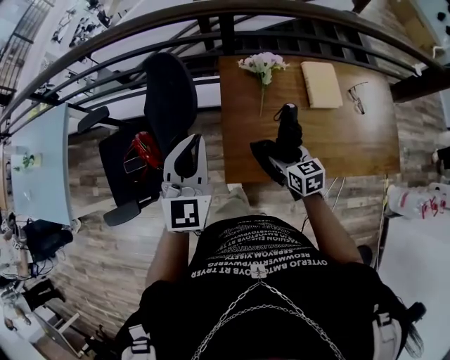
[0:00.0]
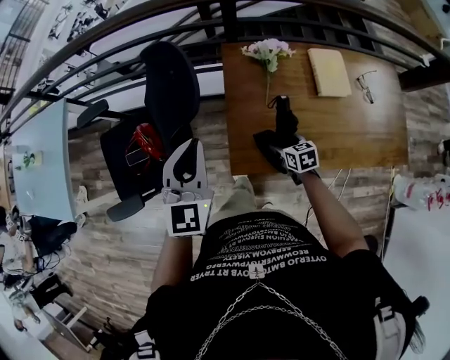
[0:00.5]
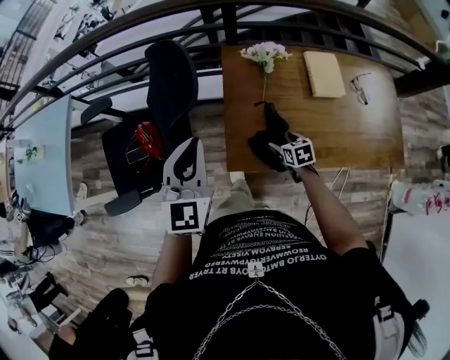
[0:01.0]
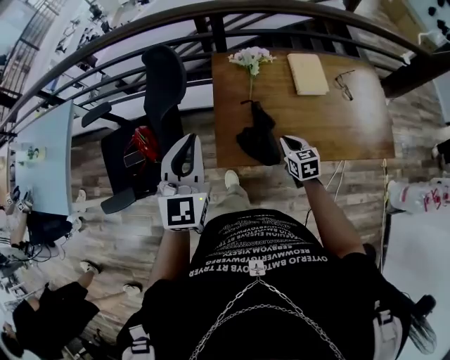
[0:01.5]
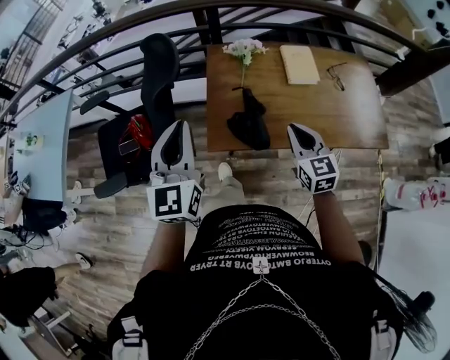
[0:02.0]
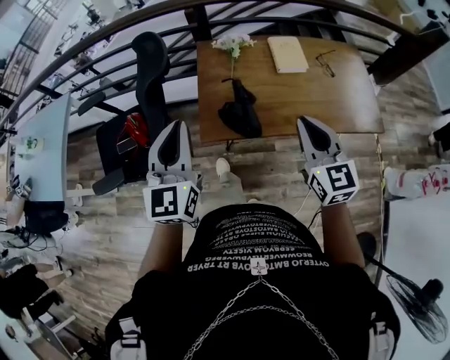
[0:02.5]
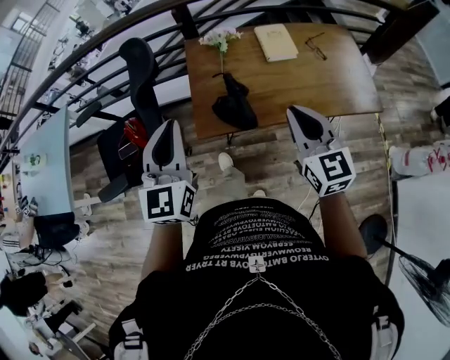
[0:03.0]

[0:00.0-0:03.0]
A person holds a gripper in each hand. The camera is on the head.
0:00.0 to 0:01.5: The right gripper heads to the right and backward, covering about 10 cm, goes downward and returns, some 10 cm each way, and closes up; the left gripper travels backward by roughly 10 cm.
0:01.5 to 0:03.0: The right gripper is displaced upward and backward by about 30 cm, and turns by roughly 30 degrees. The left gripper shifts roughly 15 cm backward and to the right.

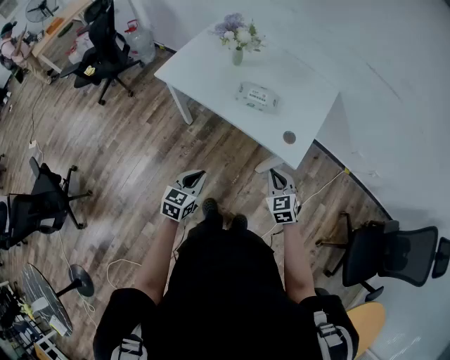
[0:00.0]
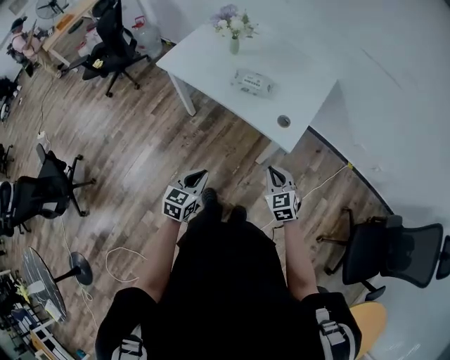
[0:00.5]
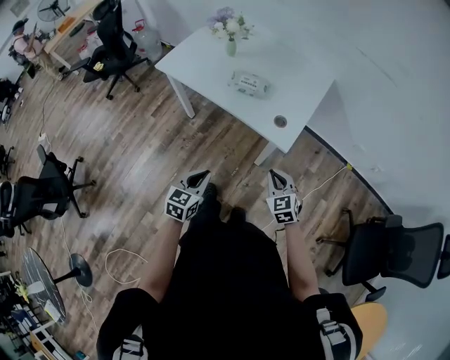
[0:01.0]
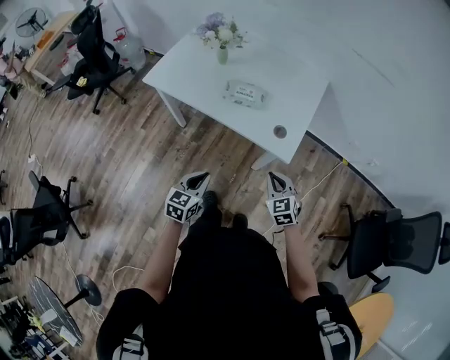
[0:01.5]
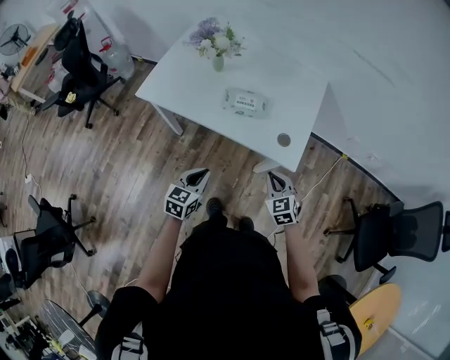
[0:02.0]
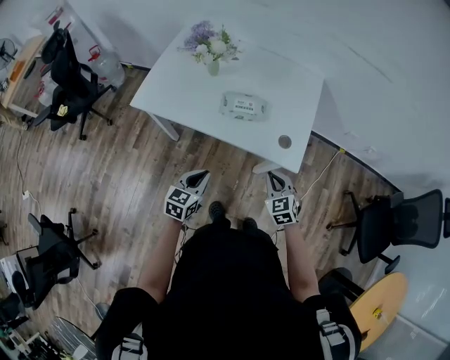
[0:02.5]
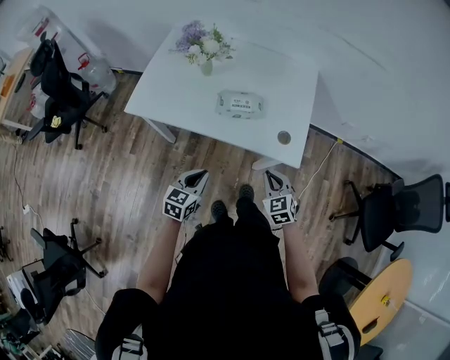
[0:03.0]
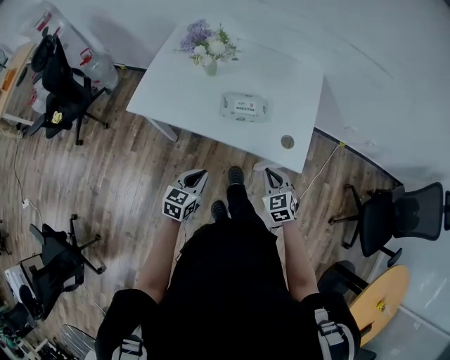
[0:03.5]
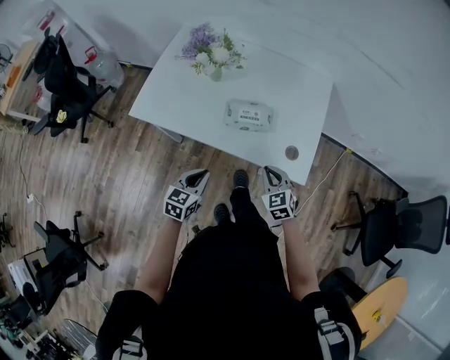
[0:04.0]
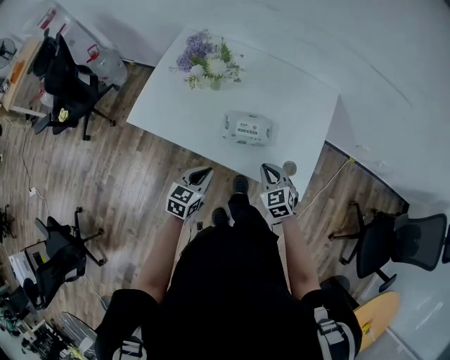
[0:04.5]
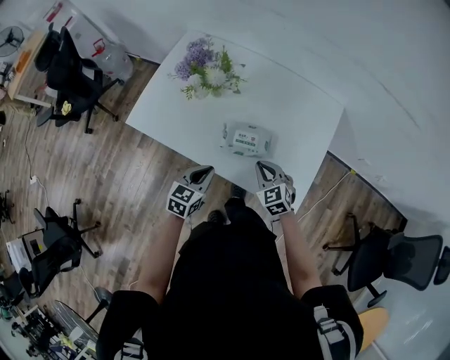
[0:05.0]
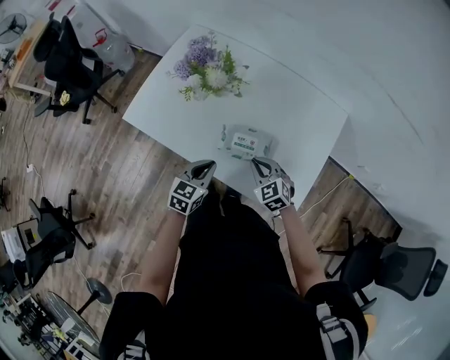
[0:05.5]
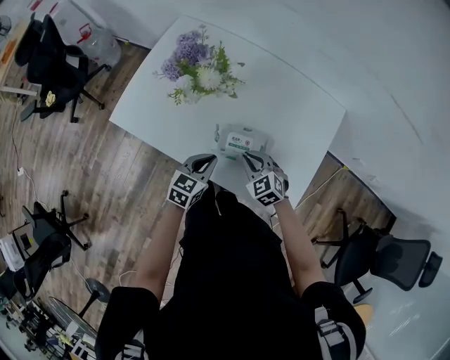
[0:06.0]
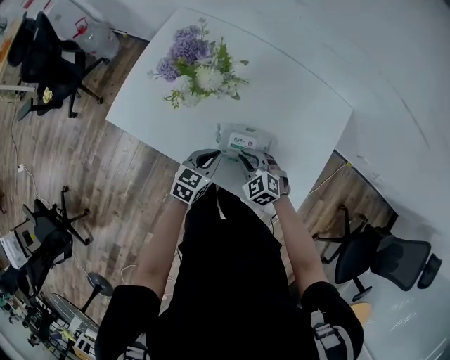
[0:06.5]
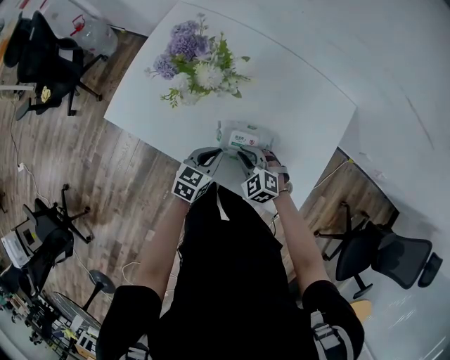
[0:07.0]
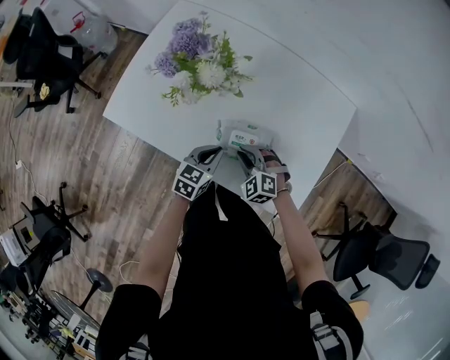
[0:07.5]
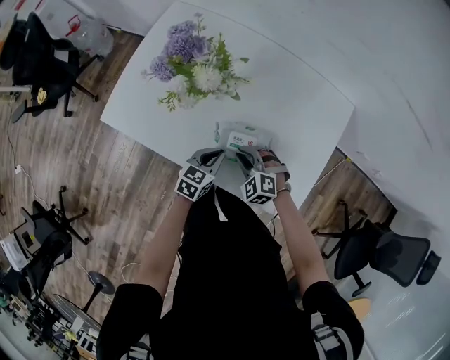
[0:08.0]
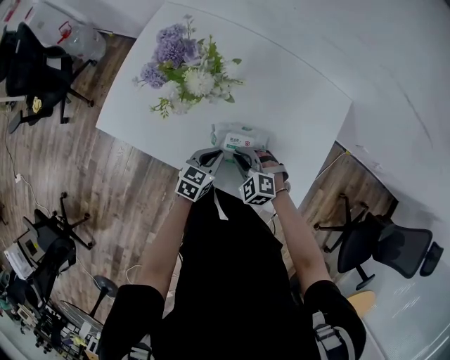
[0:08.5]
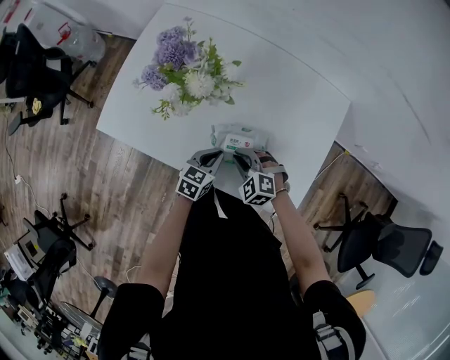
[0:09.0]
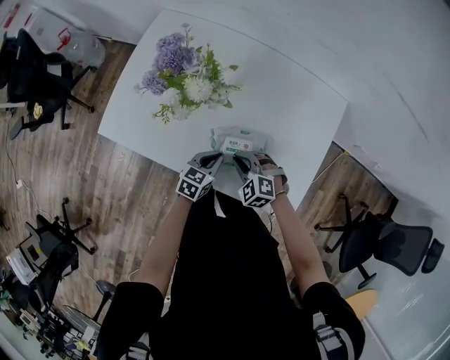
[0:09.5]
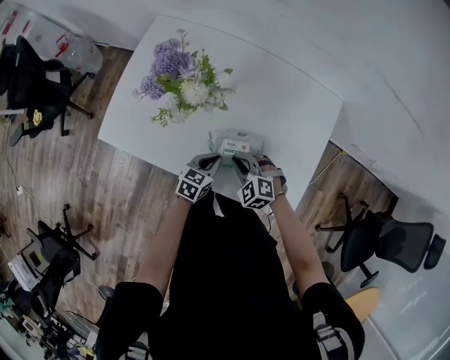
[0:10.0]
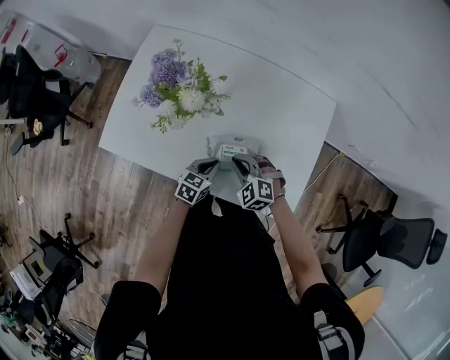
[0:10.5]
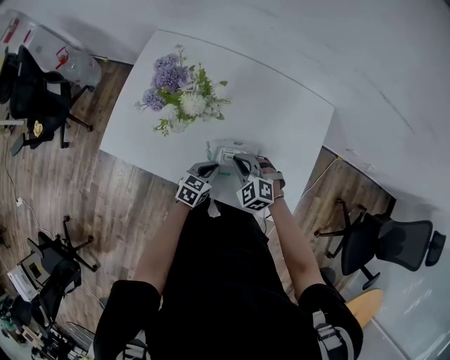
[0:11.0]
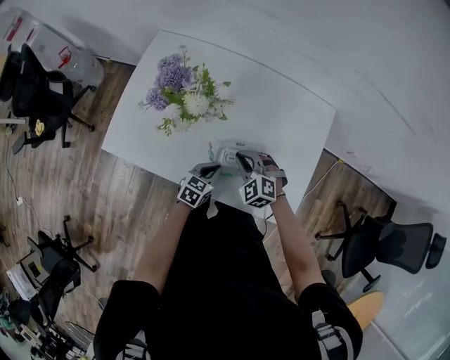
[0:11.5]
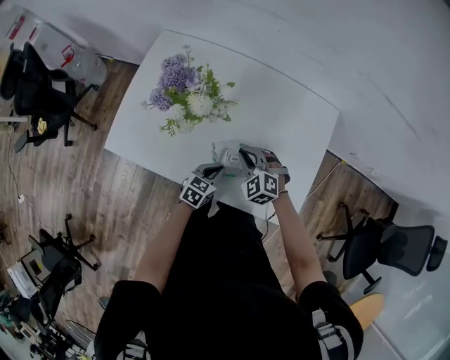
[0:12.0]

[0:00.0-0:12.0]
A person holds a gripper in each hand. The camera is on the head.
0:00.0 to 0:02.0: The left gripper heads forward, covering approximately 10 cm.
0:02.0 to 0:04.0: Both grippers travel together forward and to the left, about 15 cm.
0:04.0 to 0:06.0: Both grippers travel together forward, approximately 20 cm. The right gripper changes its angle by roughly 20 degrees.
0:06.0 to 0:08.0: The two grippers go some 5 cm downward. The right gripper turns by about 20 degrees.
0:08.0 to 0:10.0: The grippers move only a little.
0:10.0 to 0:12.0: The right gripper goes roughly 5 cm forward.

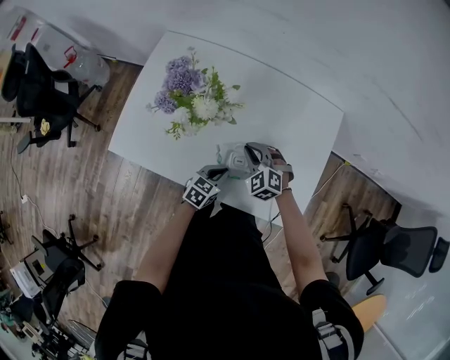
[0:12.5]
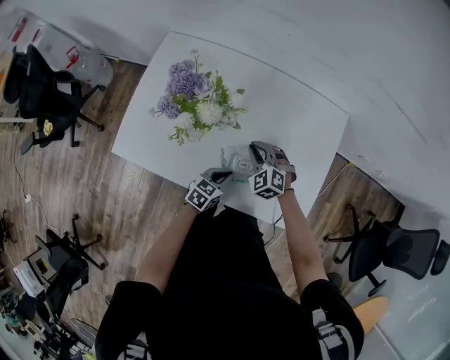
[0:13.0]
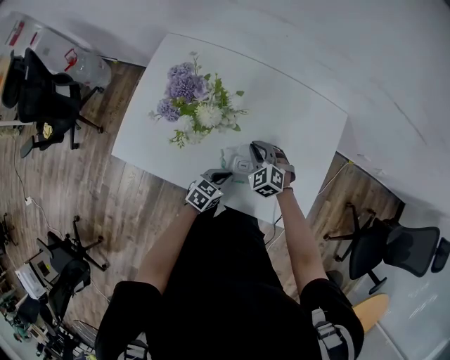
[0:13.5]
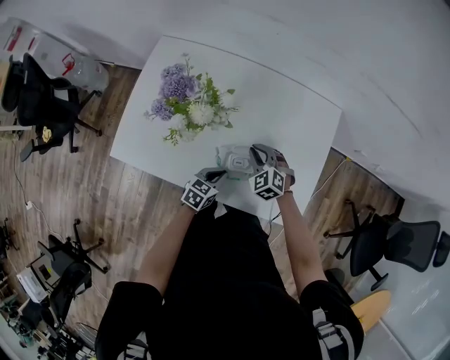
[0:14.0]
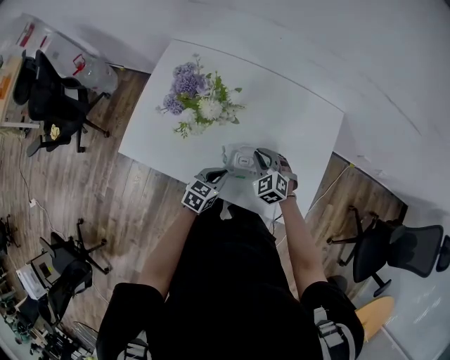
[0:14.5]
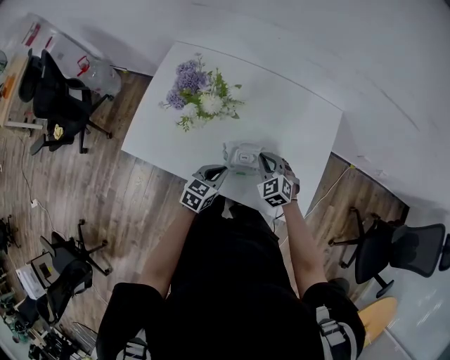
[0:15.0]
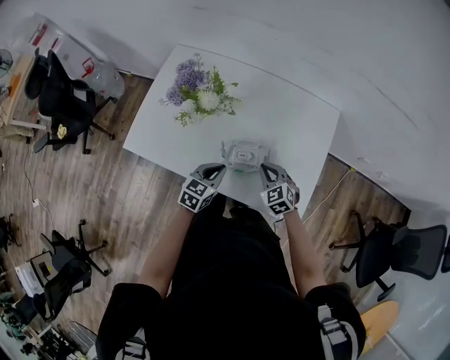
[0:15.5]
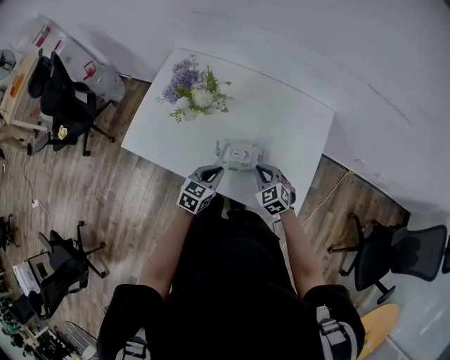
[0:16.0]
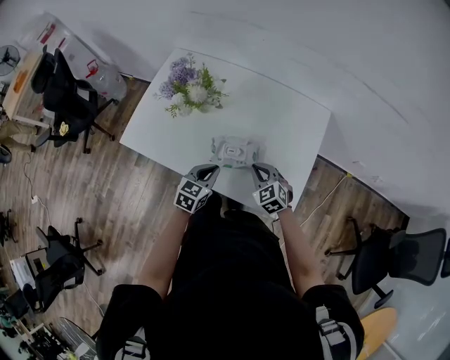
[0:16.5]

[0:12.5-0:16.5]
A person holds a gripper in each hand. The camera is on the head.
0:12.5 to 0:14.5: The left gripper heads upward, covering some 5 cm.
0:14.5 to 0:16.5: The right gripper travels backward and to the right by some 15 cm; the left gripper is displaced upward by roughly 5 cm.

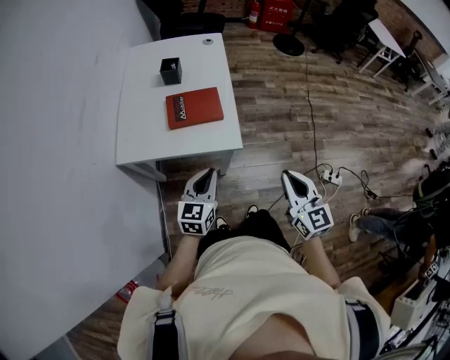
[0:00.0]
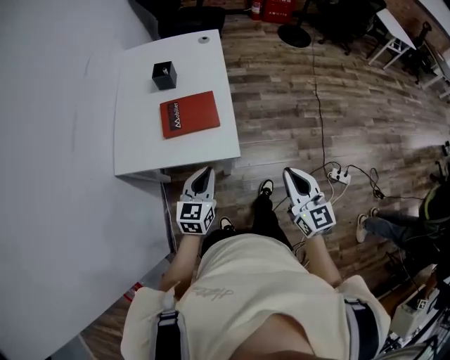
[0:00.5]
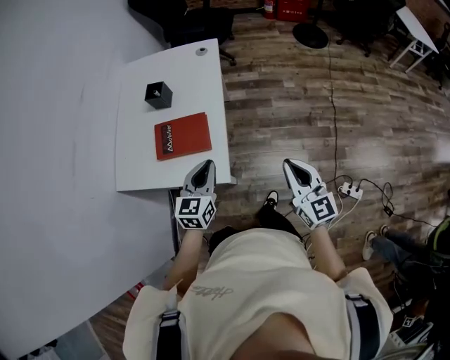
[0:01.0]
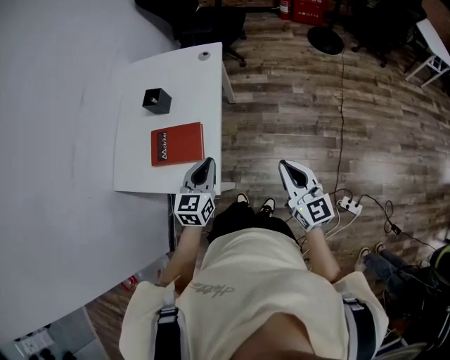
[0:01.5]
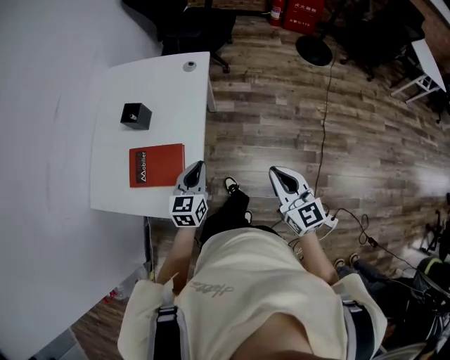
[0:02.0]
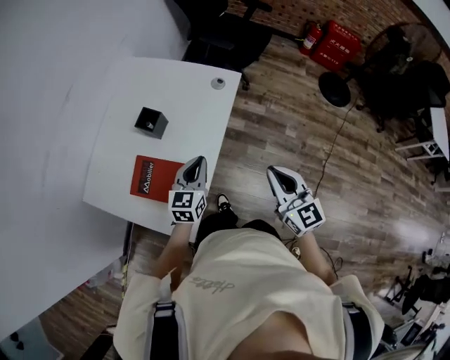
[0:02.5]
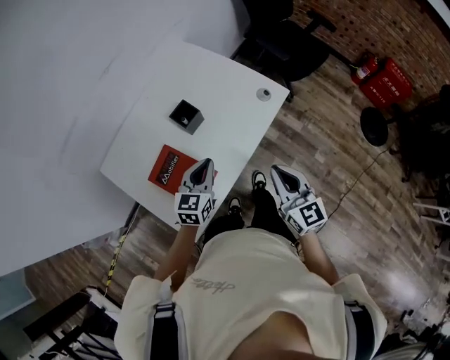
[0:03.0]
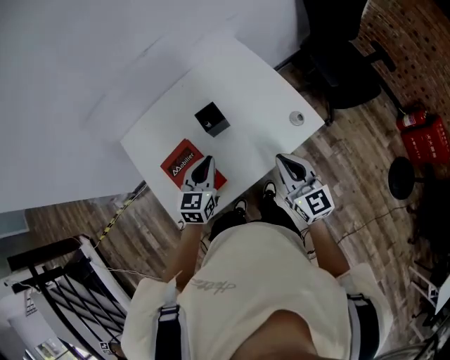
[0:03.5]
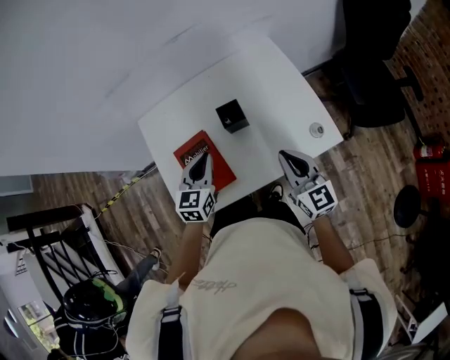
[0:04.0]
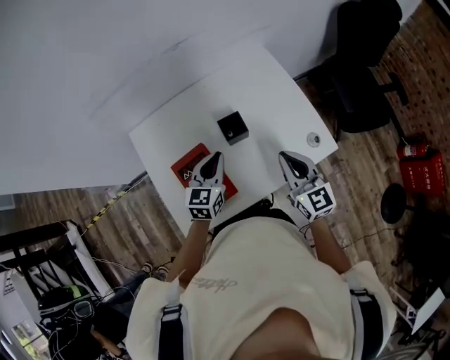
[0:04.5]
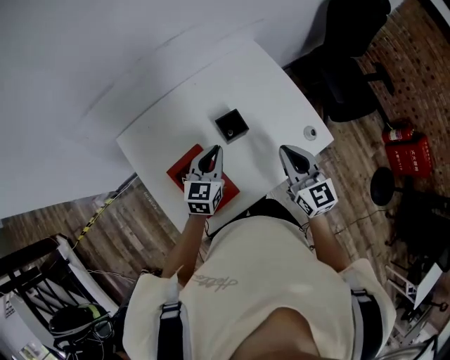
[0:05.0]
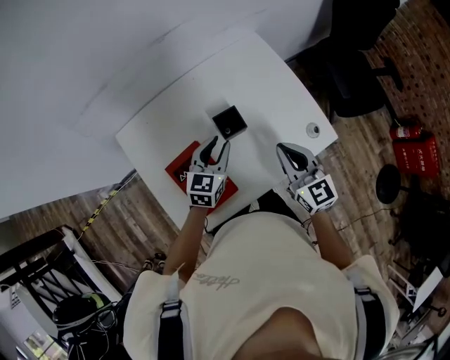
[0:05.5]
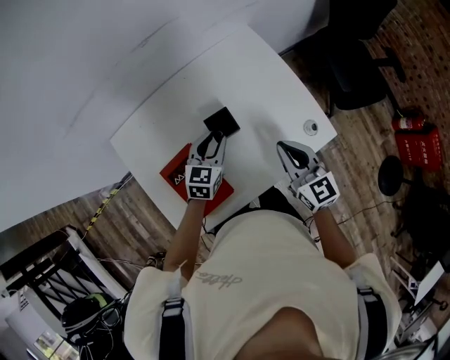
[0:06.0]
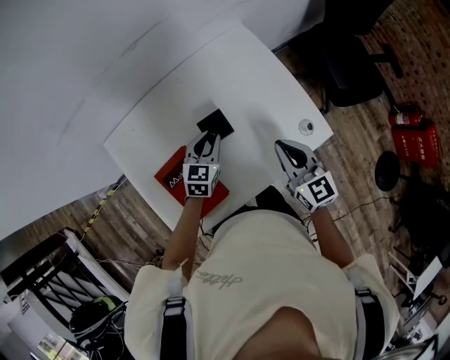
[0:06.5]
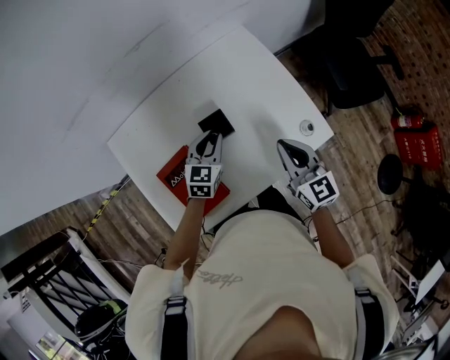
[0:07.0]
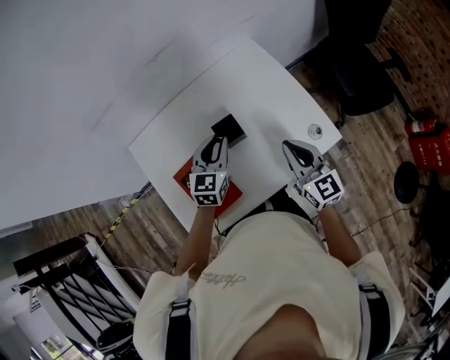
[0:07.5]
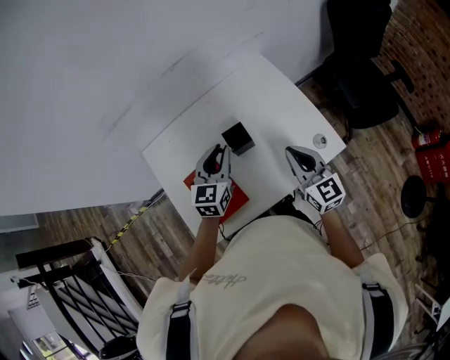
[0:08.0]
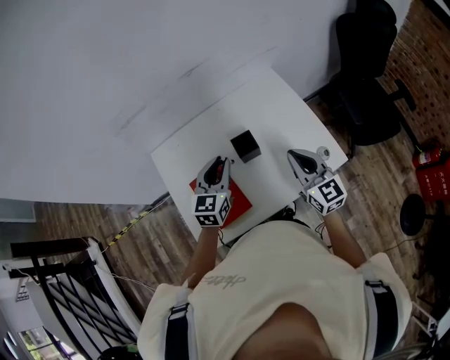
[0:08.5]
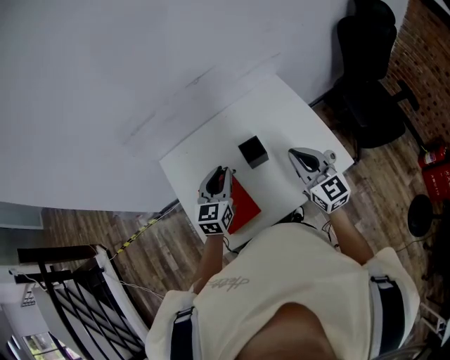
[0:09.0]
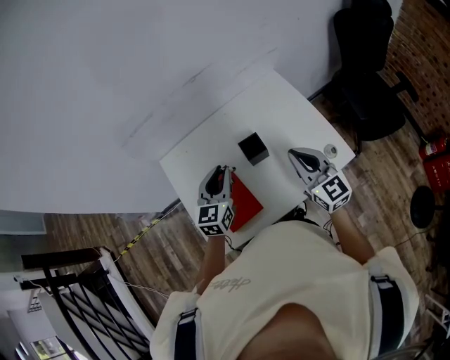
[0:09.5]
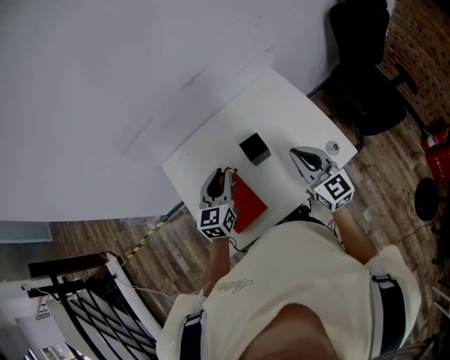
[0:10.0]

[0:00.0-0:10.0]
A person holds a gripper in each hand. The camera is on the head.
0:00.0 to 0:02.0: The grippers both shift forward and to the right by about 40 cm.
0:02.0 to 0:04.0: The left gripper shifts by roughly 25 cm, and rotates roughly 60 degrees, while the right gripper ends up about 40 cm from where it was, and rotates about 60 degrees.
0:04.0 to 0:06.0: The left gripper travels forward, downward and to the right by roughly 15 cm, and opens up; the right gripper moves forward, approximately 5 cm.
0:06.0 to 0:08.0: The left gripper heads upward, covering approximately 10 cm.
0:08.0 to 0:10.0: The right gripper ends up roughly 5 cm from where it was, while the left gripper shifts some 5 cm to the left.
